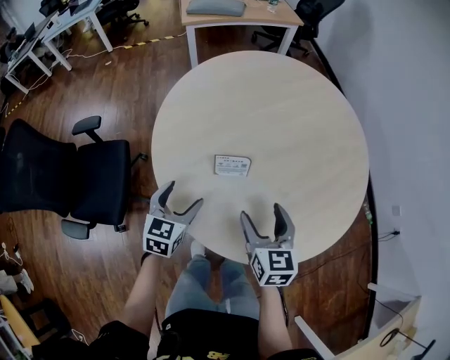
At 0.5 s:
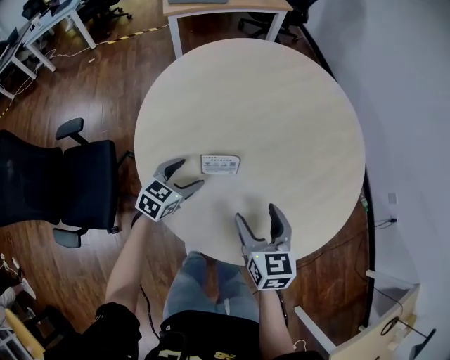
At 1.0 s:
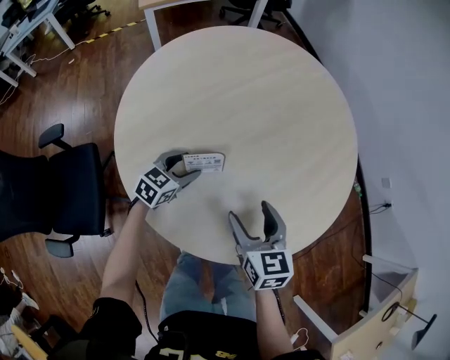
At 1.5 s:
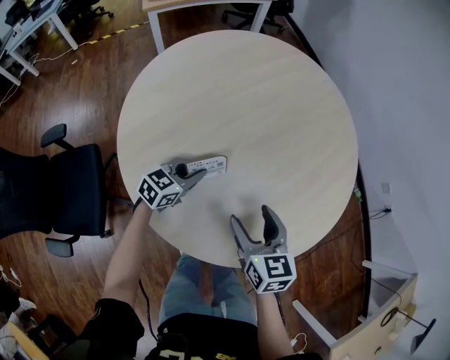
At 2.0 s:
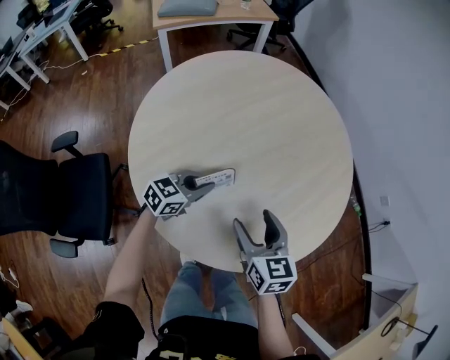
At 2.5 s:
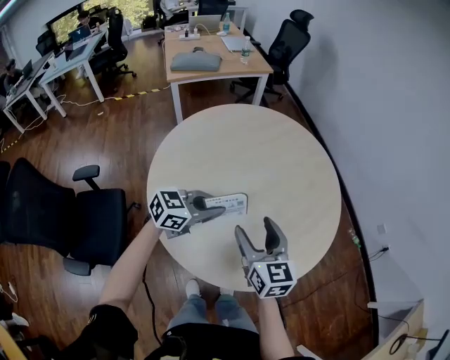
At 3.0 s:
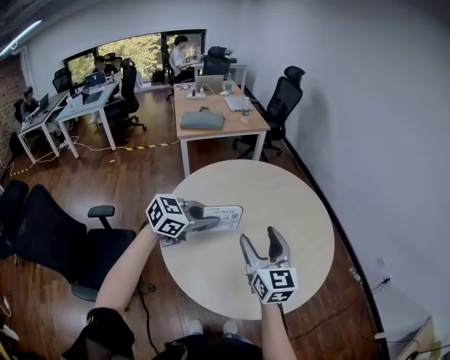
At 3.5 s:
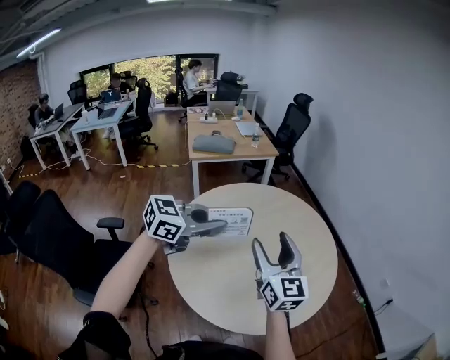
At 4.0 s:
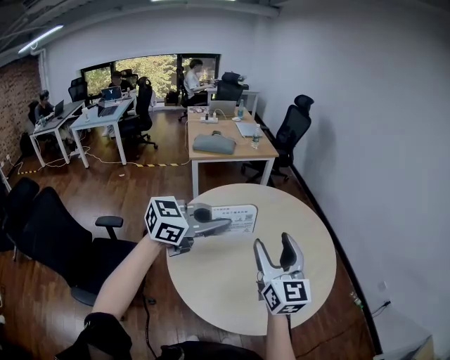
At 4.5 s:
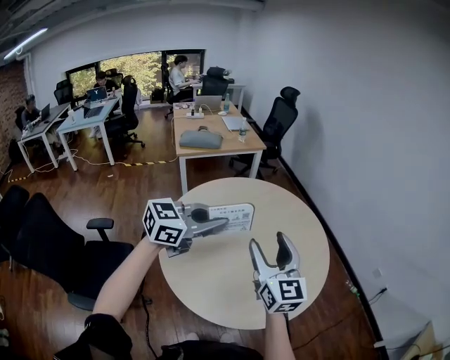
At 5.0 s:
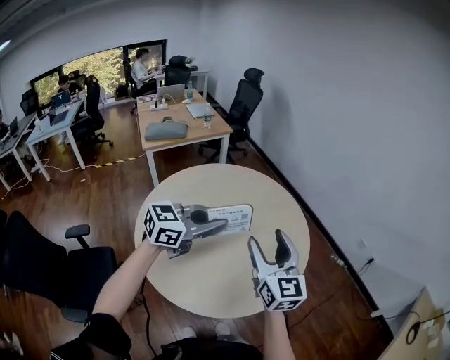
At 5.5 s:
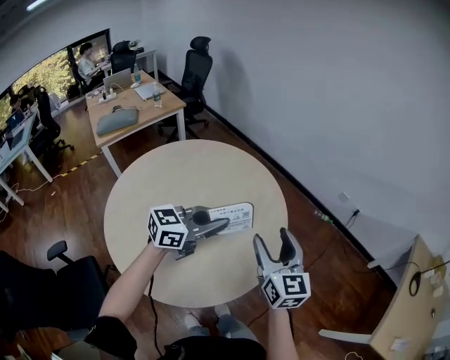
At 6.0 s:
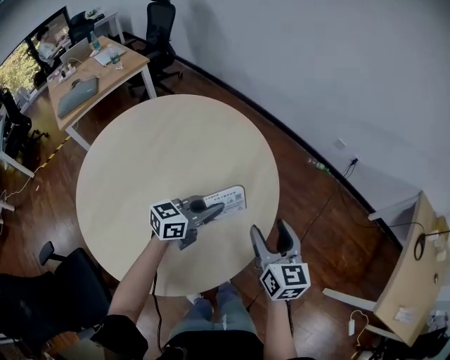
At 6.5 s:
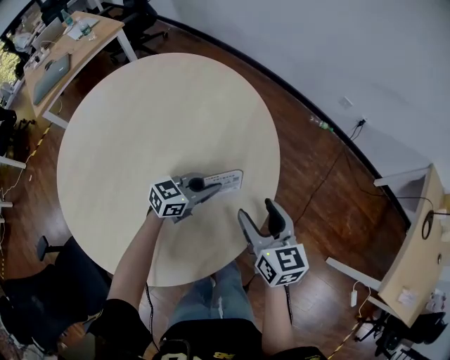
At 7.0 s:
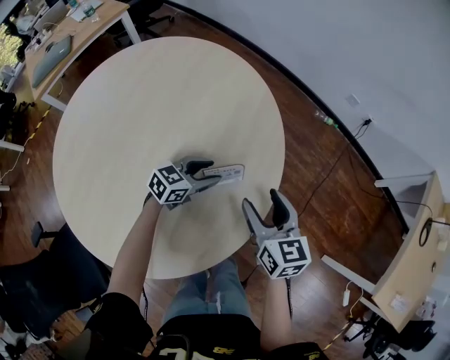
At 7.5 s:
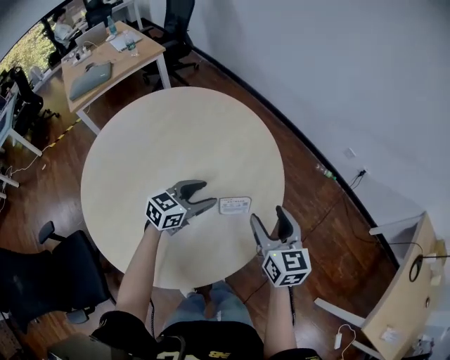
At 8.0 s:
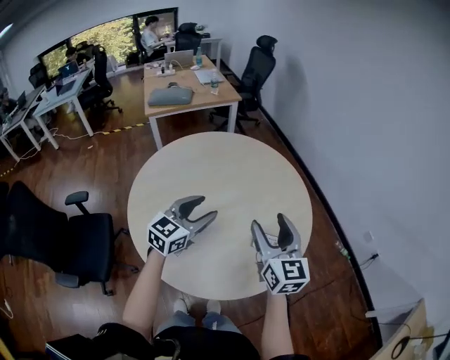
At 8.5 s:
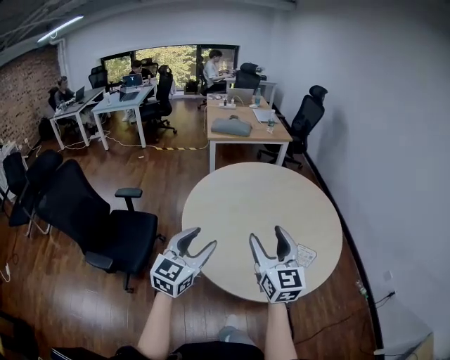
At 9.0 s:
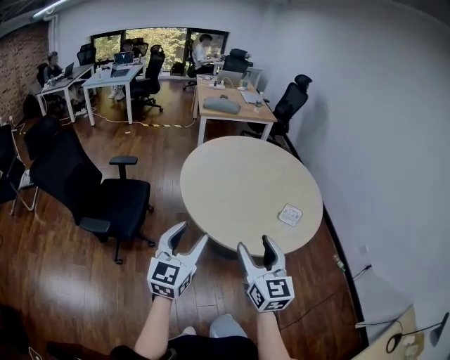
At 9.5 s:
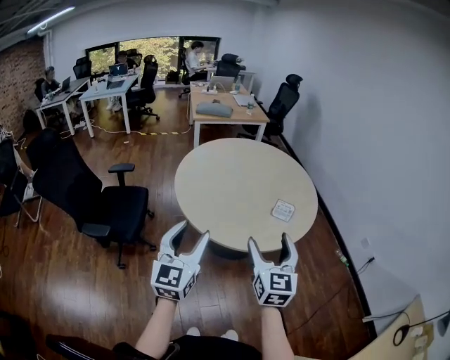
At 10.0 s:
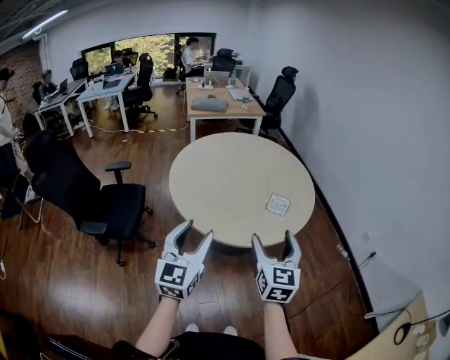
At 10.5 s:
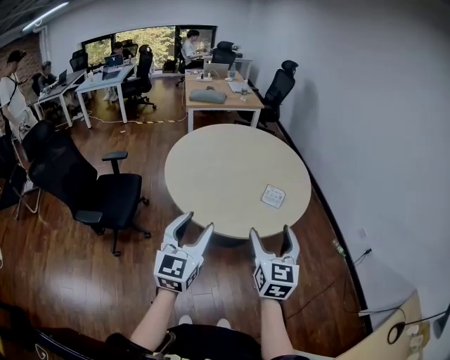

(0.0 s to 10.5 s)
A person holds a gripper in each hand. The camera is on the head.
0.0 s - 2.0 s: The left gripper goes approximately 15 cm forward and to the right, swivels about 40 degrees, and closes its fingers.
2.0 s - 4.0 s: The two grippers go some 35 cm upward. The left gripper changes its angle by about 20 degrees, while the right gripper angles its fingers upward, by roughly 40 degrees.
4.0 s - 6.5 s: Both grippers move downward, some 35 cm. The right gripper tips its fingers downward by approximately 30 degrees, while the left gripper turns by about 40 degrees.
6.5 s - 8.5 s: The left gripper changes place by some 50 cm, swivels roughly 80 degrees, and opens, while the right gripper moves about 40 cm, and swivels approximately 50 degrees.
8.5 s - 10.5 s: The grippers both shift backward and to the right by some 25 cm. The right gripper changes its angle by some 20 degrees.

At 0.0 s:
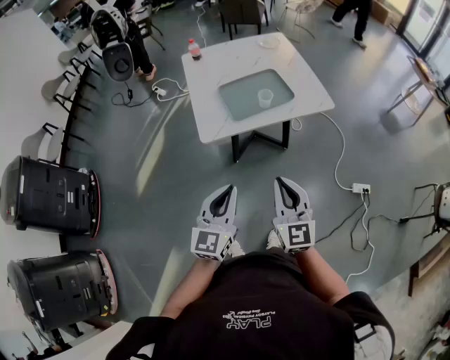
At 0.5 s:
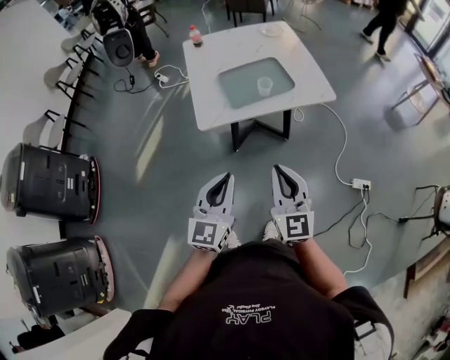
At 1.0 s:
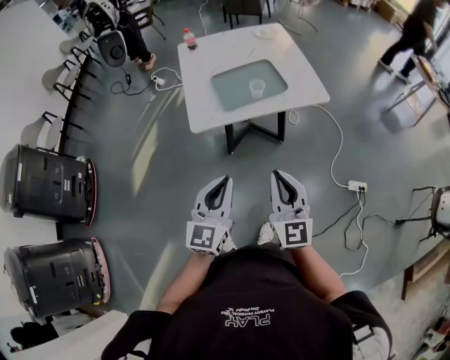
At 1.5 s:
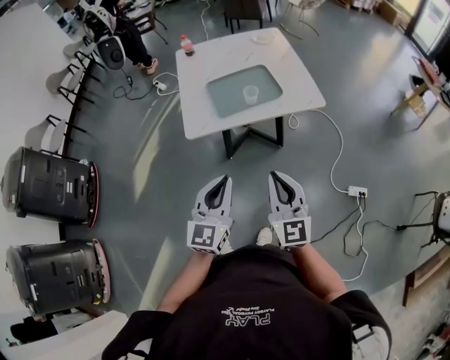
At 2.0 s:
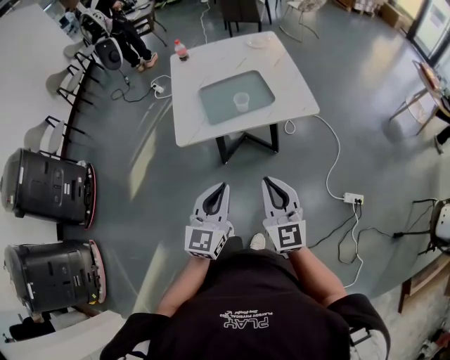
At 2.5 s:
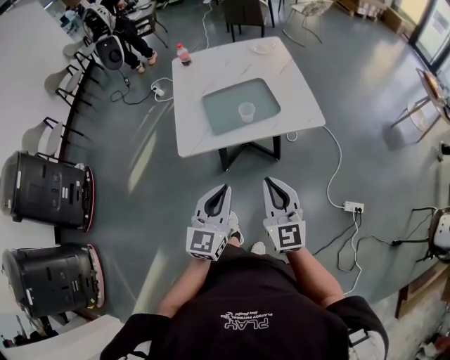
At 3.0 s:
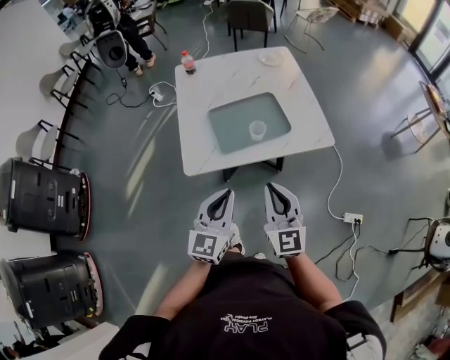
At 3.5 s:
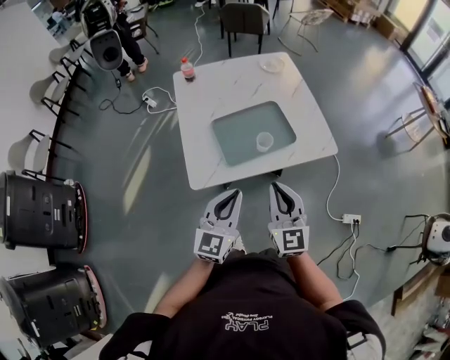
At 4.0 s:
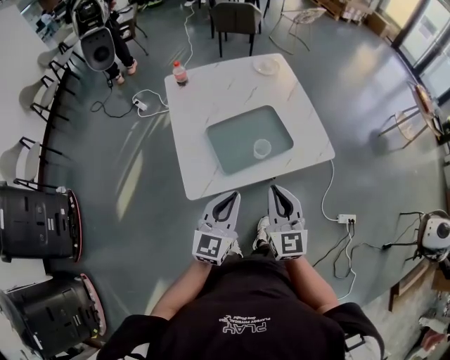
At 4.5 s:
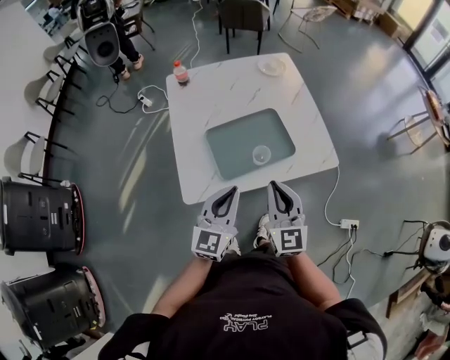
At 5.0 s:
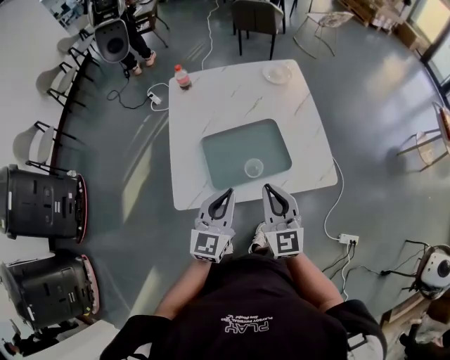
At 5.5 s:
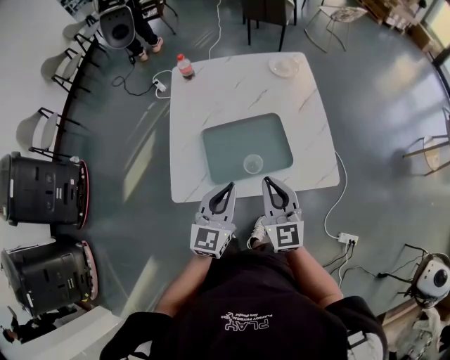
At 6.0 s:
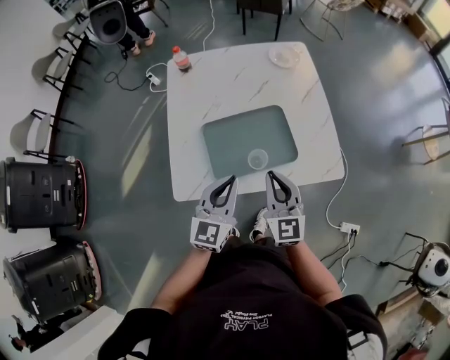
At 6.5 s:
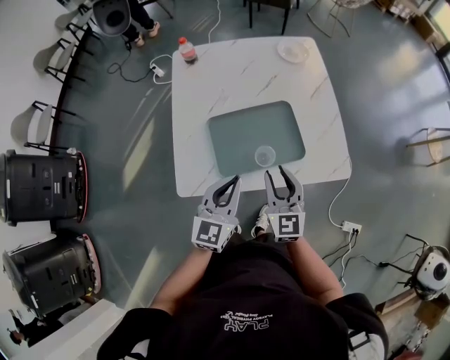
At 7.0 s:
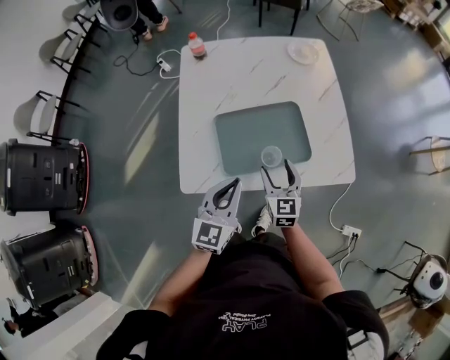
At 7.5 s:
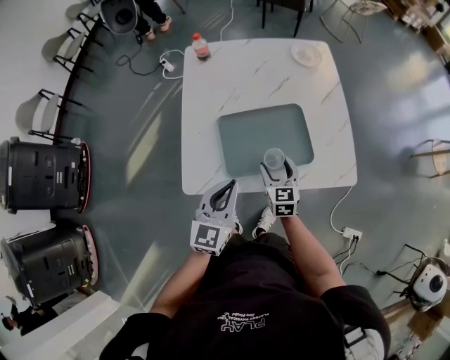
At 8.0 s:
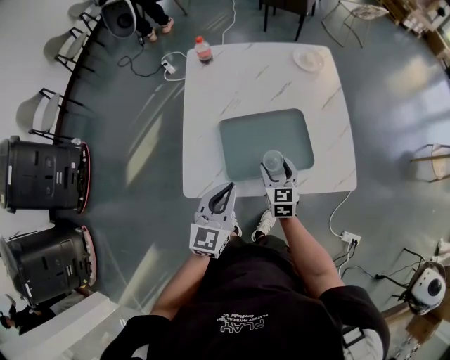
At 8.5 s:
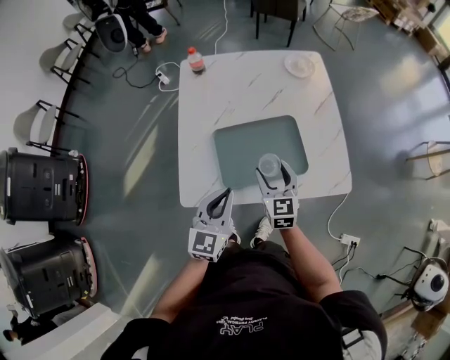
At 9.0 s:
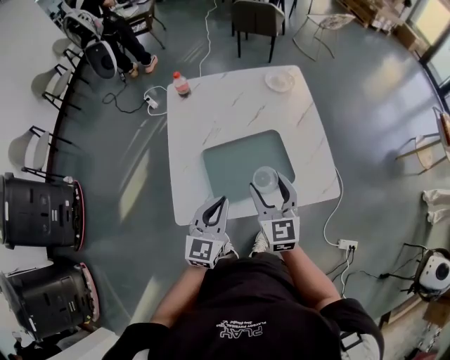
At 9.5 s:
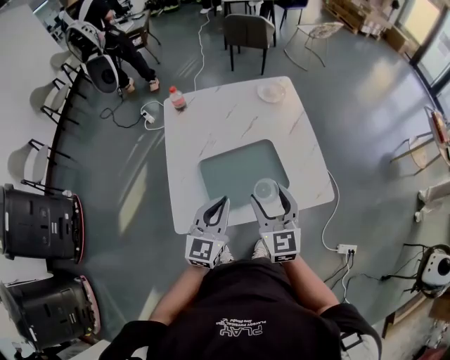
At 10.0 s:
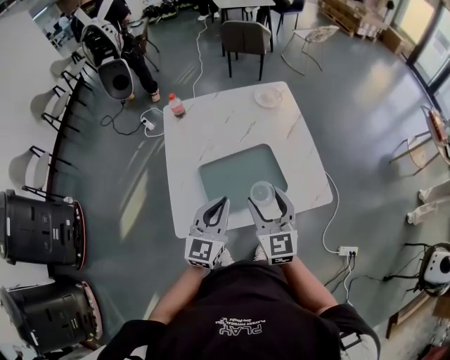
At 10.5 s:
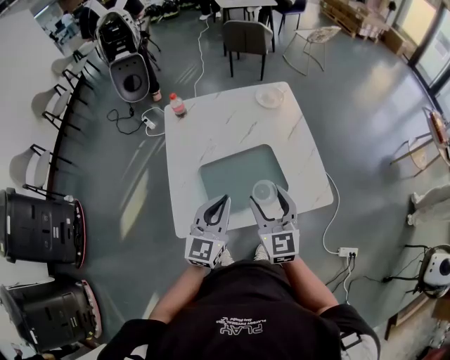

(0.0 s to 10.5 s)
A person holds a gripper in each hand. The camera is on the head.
0.0 s - 2.0 s: The left gripper travels to the right and forward by roughly 15 cm; the right gripper is displaced to the right by approximately 10 cm.
2.0 s - 4.0 s: The grippers both shift forward and to the left by approximately 25 cm.
4.0 s - 6.5 s: The left gripper heads forward, covering some 10 cm, while the right gripper travels forward and downward by about 15 cm.
6.5 s - 8.5 s: The right gripper is displaced forward by approximately 5 cm, and opens up.
8.5 s - 10.5 s: The left gripper shifts roughly 5 cm upward. The right gripper is displaced upward by about 15 cm.

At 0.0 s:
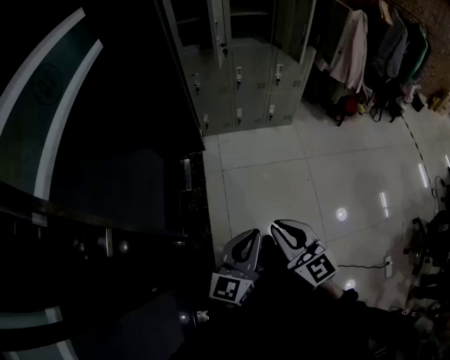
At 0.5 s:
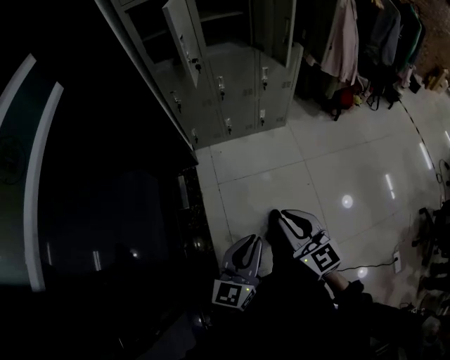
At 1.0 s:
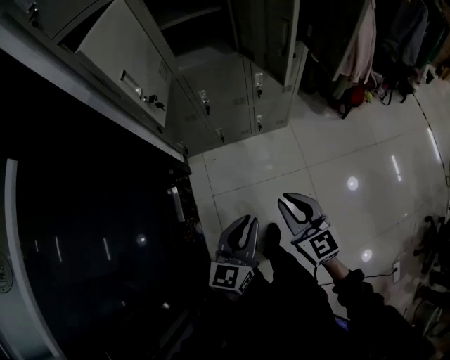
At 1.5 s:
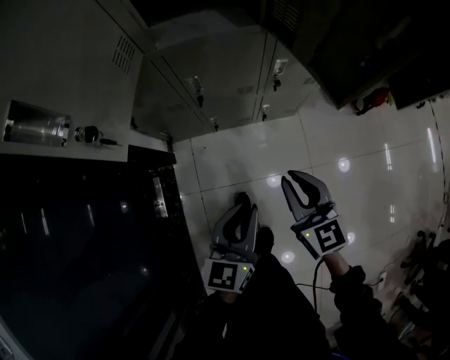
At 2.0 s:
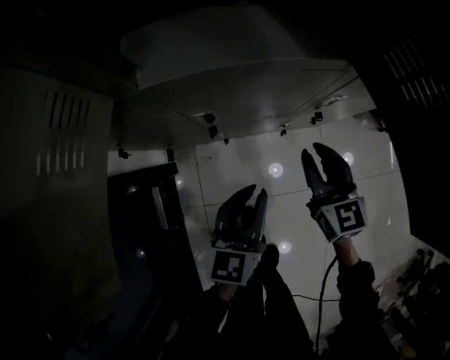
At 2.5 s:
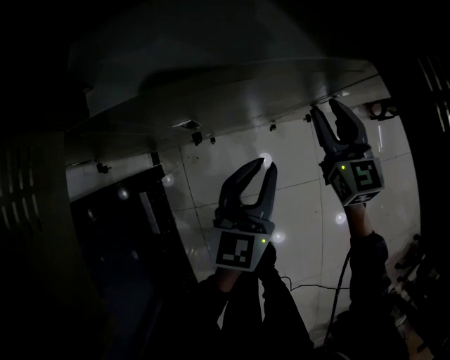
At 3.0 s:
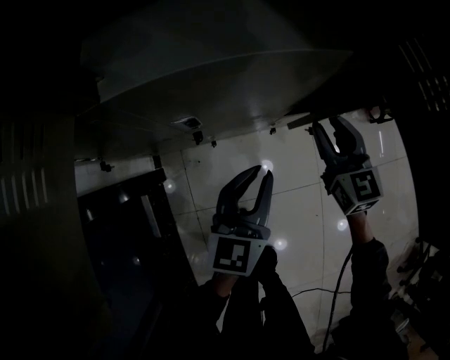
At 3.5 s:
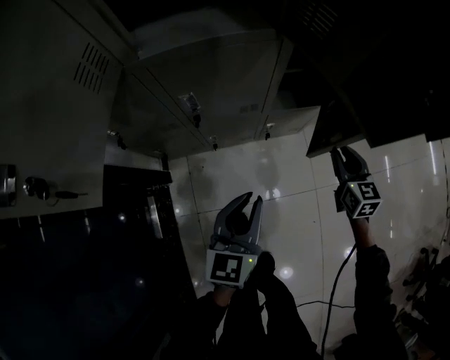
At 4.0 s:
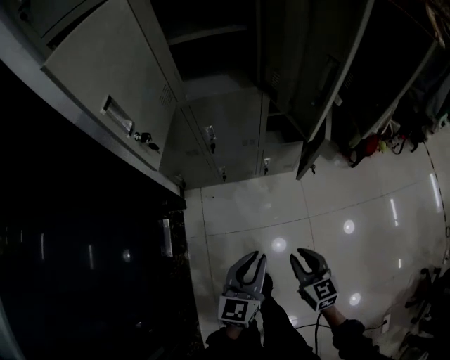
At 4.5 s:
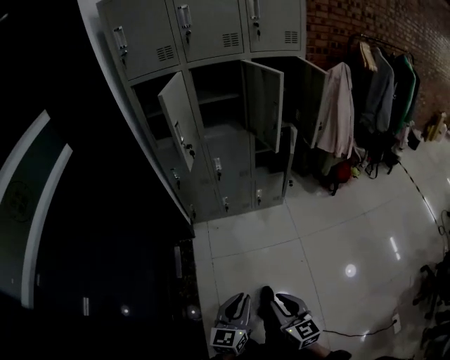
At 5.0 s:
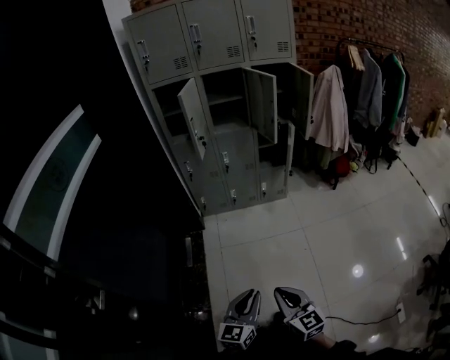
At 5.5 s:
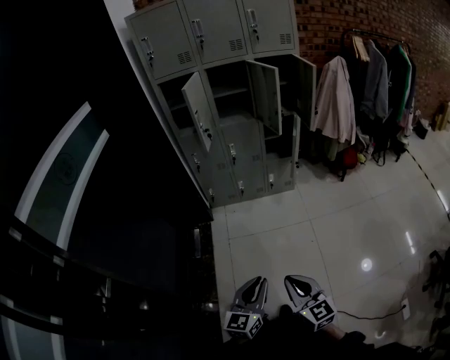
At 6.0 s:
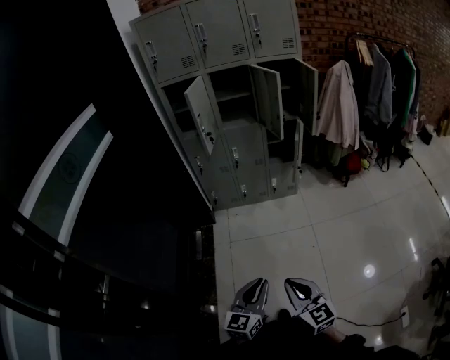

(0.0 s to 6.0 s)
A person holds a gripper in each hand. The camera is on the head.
0.0 s - 2.0 s: The two grippers travel together, forward, approximately 90 cm. The right gripper swivels about 20 degrees.
2.0 s - 4.0 s: The right gripper moves backward, about 40 cm; the left gripper is displaced backward and upward by some 35 cm.
4.0 s - 6.0 s: The two grippers travel together, backward, approximately 50 cm. The right gripper shifts roughly 25 cm upward, and closes.
